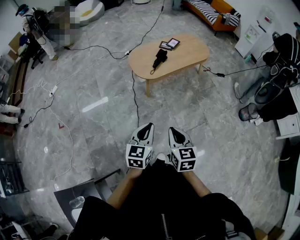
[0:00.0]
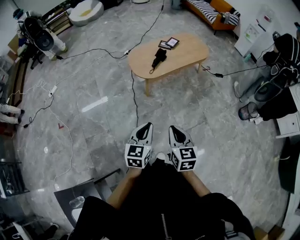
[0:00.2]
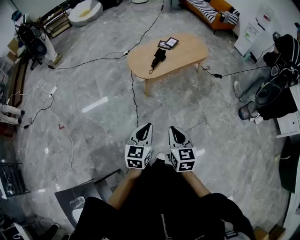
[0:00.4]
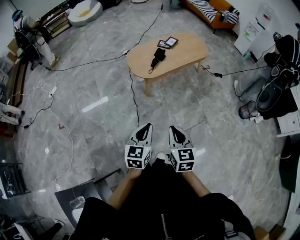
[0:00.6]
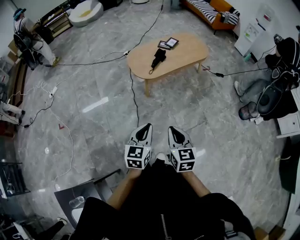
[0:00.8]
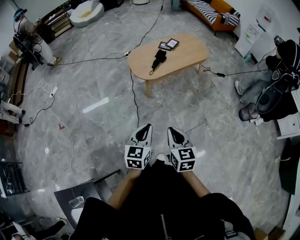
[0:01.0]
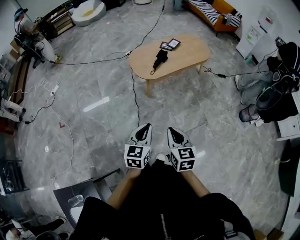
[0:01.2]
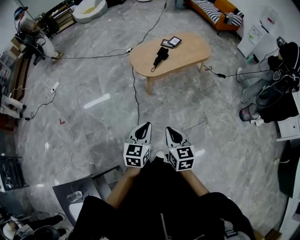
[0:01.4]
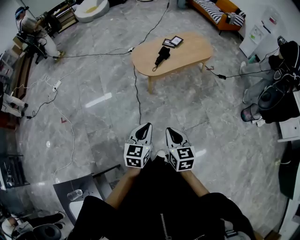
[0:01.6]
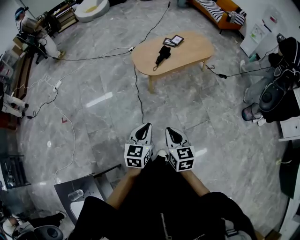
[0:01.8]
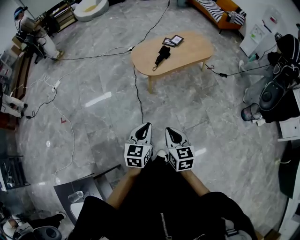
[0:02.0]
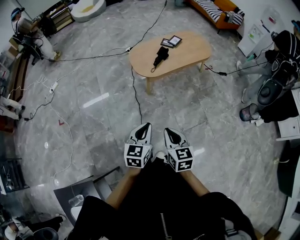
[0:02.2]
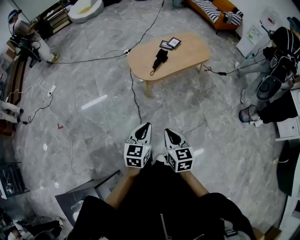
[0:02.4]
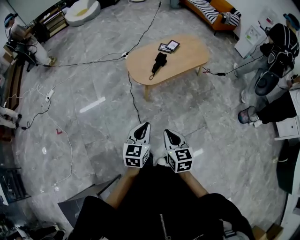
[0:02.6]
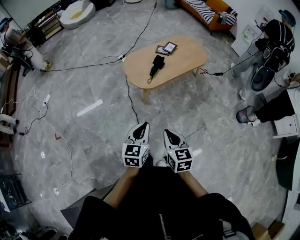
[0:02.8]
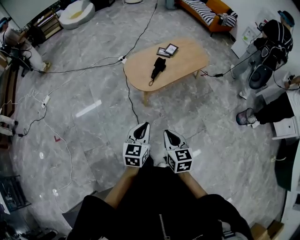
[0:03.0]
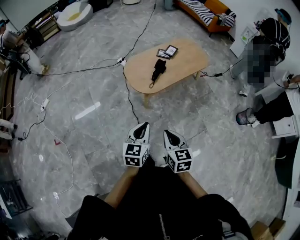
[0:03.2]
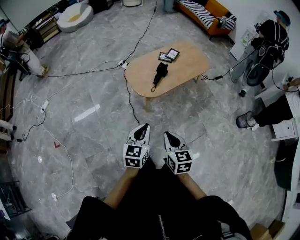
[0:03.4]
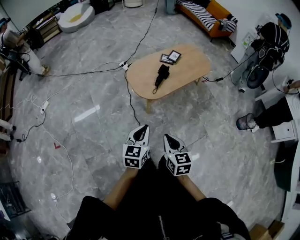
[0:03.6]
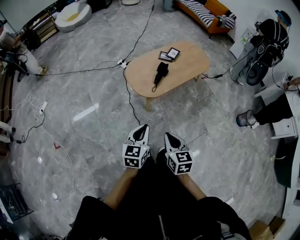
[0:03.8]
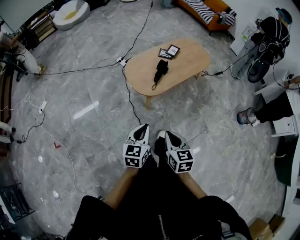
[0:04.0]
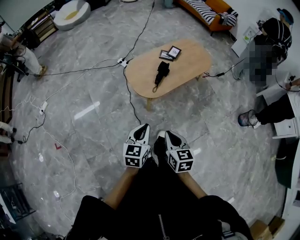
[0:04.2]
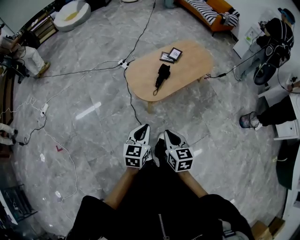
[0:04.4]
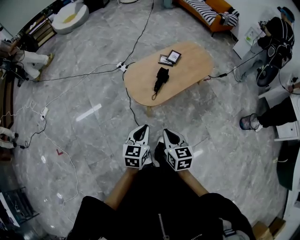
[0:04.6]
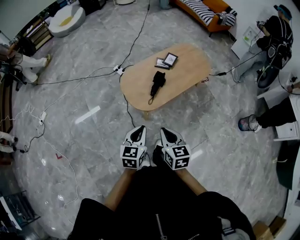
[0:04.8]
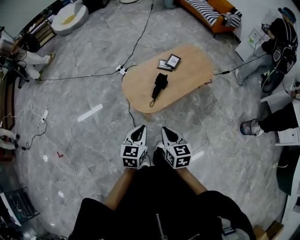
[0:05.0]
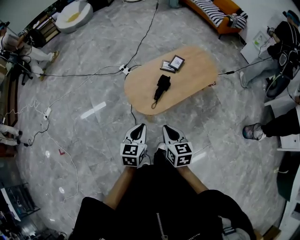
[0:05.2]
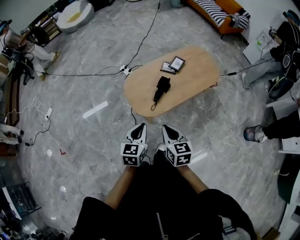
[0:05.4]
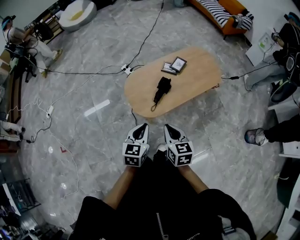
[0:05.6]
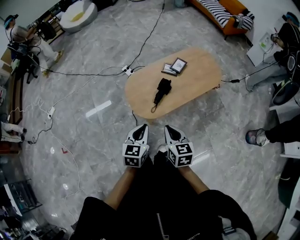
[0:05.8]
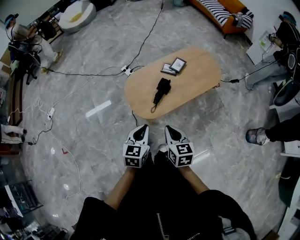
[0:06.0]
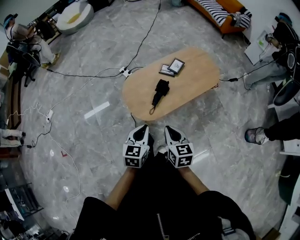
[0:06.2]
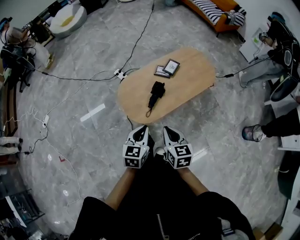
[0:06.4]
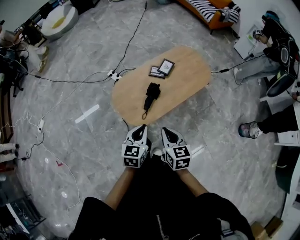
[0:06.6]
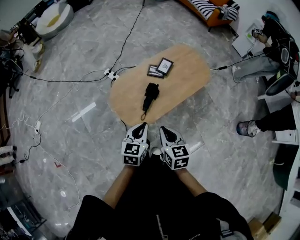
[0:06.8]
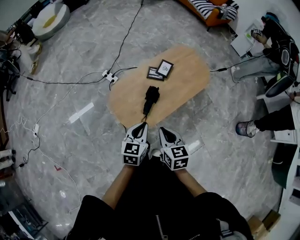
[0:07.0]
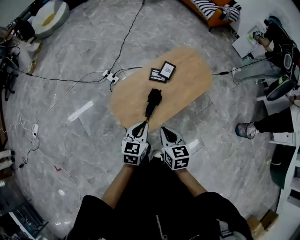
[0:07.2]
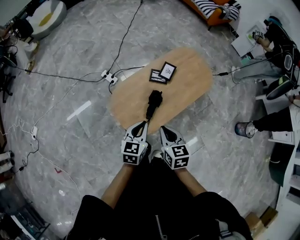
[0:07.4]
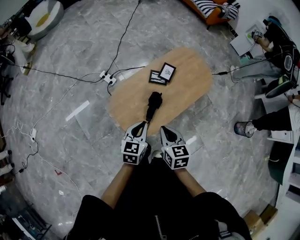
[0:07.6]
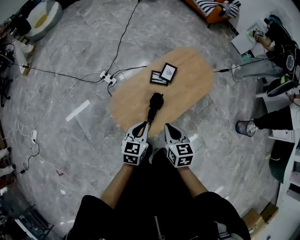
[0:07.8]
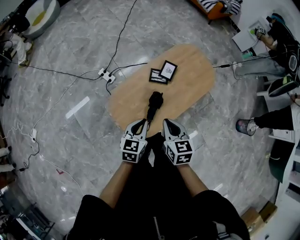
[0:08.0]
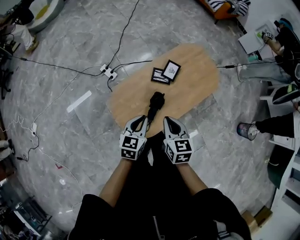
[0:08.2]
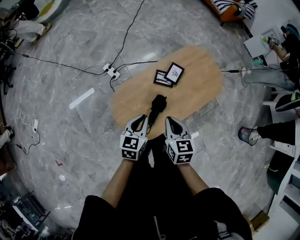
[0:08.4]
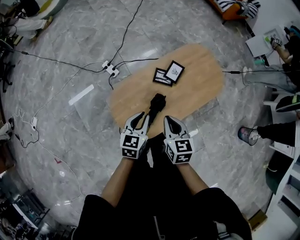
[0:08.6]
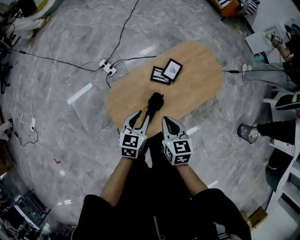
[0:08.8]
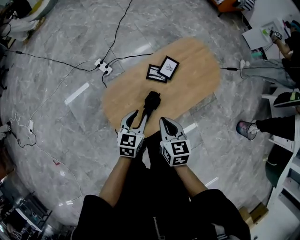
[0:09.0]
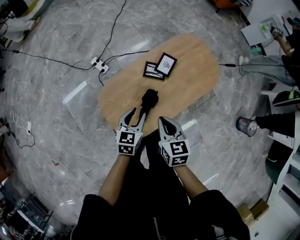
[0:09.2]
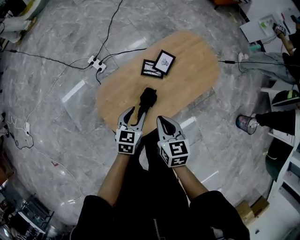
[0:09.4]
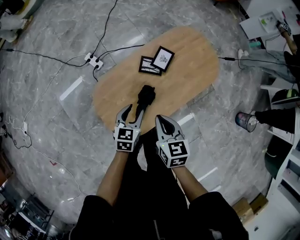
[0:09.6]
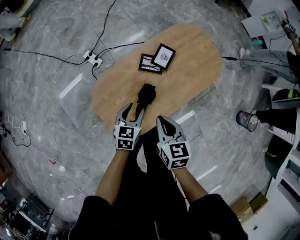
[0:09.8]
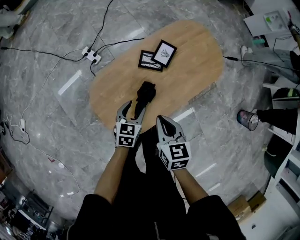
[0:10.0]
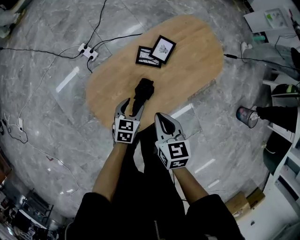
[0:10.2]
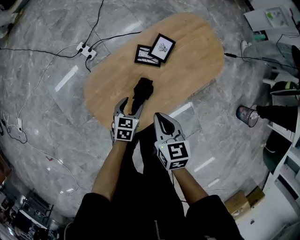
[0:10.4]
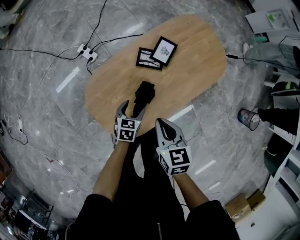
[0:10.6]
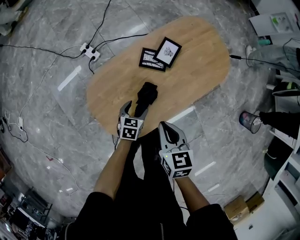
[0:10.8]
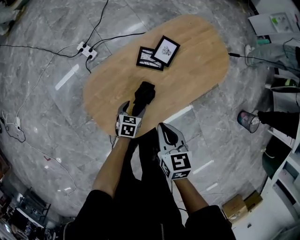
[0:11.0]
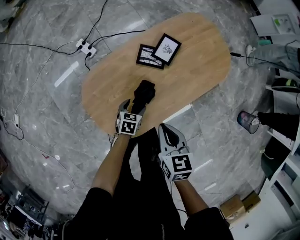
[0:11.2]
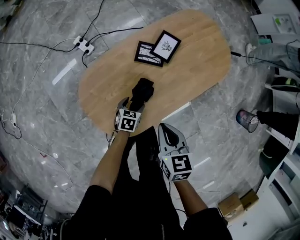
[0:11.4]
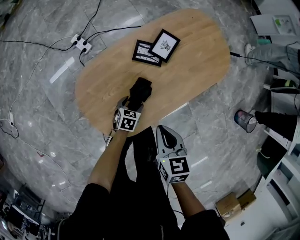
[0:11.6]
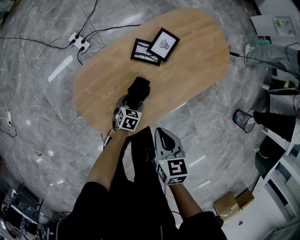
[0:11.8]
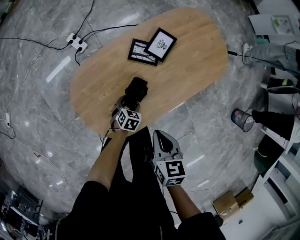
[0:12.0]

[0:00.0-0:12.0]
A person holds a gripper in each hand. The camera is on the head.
0.0 to 1.6 s: The grippers make only small movements.
1.6 to 3.0 s: The two grippers go about 15 cm forward.
3.0 to 4.4 s: The grippers both shift forward by roughly 10 cm.
4.4 to 6.0 s: Both grippers travel together forward and to the right, some 20 cm.
6.0 to 7.6 s: The two grippers go roughly 20 cm forward.
7.6 to 9.0 s: Both grippers move forward and downward, about 15 cm. The left gripper opens up.
9.0 to 10.4 s: The right gripper moves downward, roughly 10 cm. The left gripper travels downward by approximately 20 cm, and opens its fingers.
10.4 to 12.0 s: The right gripper travels downward by about 5 cm. Meanwhile the left gripper shifts roughly 15 cm downward.

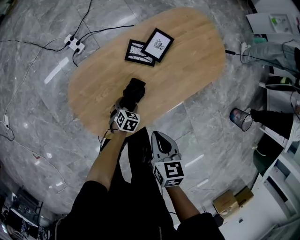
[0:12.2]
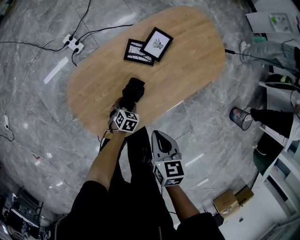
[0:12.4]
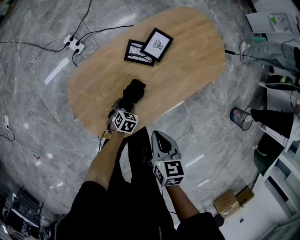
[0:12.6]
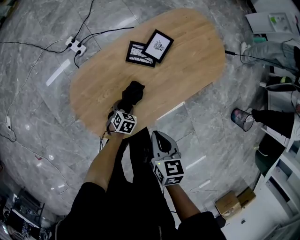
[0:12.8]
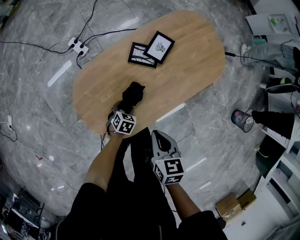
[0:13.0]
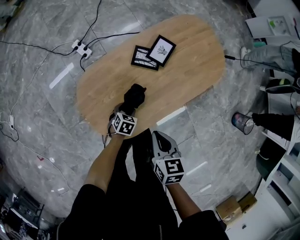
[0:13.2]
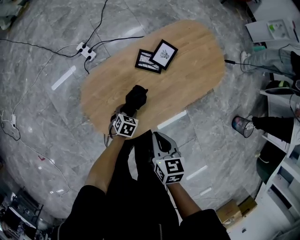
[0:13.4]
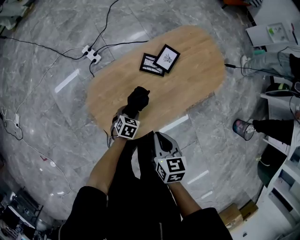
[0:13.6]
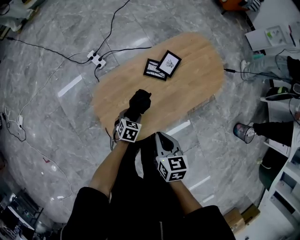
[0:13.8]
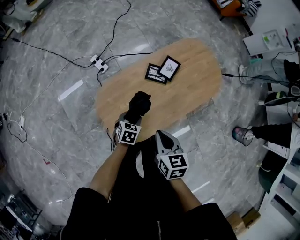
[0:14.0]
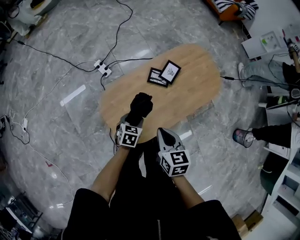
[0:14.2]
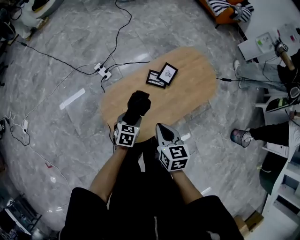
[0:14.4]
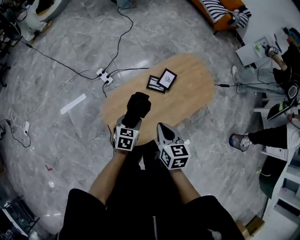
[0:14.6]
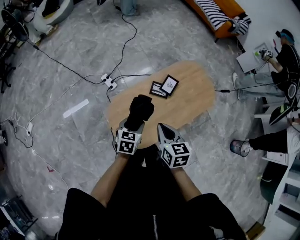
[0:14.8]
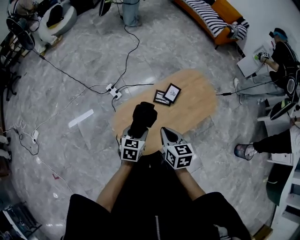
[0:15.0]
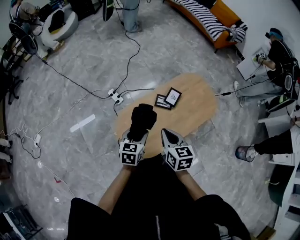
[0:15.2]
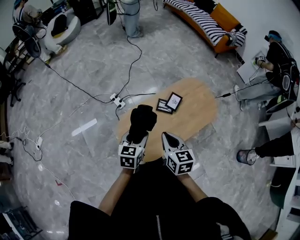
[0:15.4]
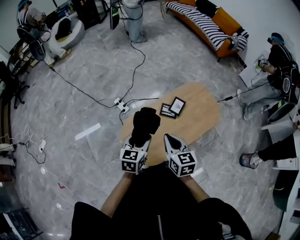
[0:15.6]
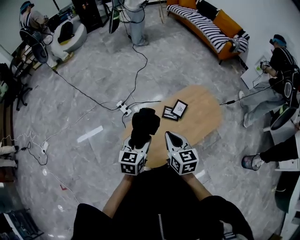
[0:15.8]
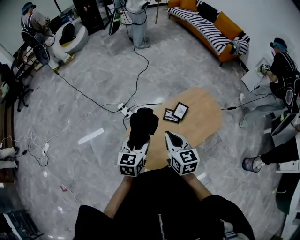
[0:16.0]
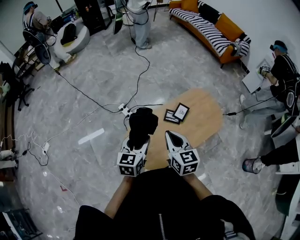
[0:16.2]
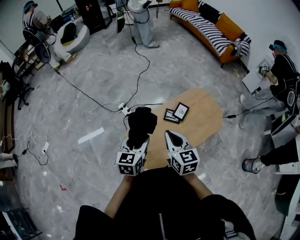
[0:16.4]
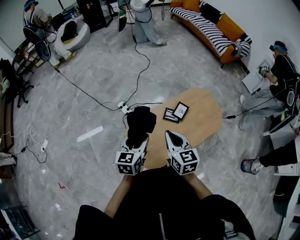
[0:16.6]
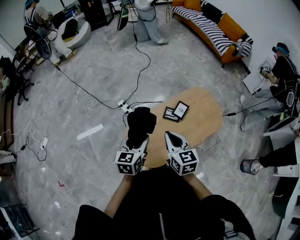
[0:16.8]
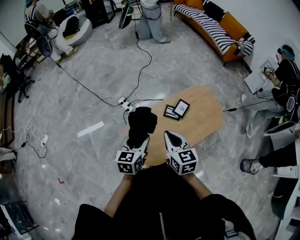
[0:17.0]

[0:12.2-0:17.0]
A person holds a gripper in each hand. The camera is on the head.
12.2 to 13.8 s: The left gripper goes some 15 cm upward and to the left. The right gripper goes approximately 10 cm upward and to the left.
13.8 to 15.4 s: The left gripper goes some 35 cm upward, and swivels roughly 30 degrees. Meanwhile the right gripper shifts about 20 cm upward.
15.4 to 17.0 s: The left gripper ends up approximately 5 cm from where it was.

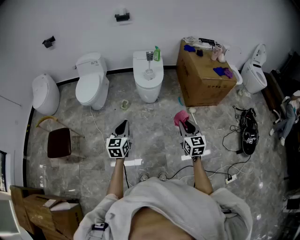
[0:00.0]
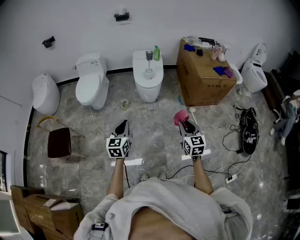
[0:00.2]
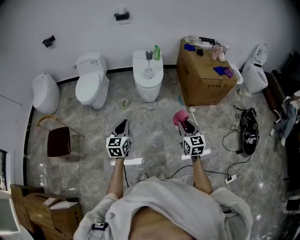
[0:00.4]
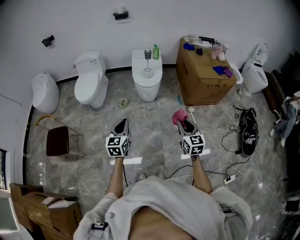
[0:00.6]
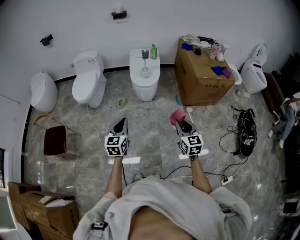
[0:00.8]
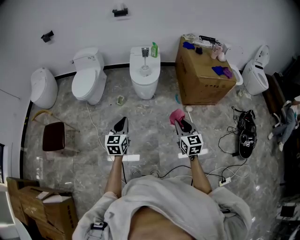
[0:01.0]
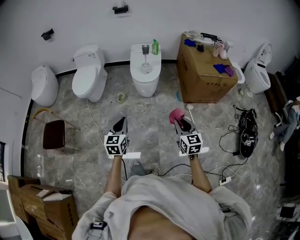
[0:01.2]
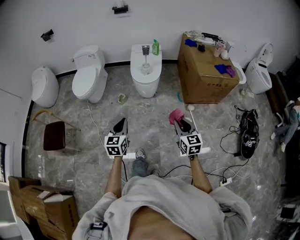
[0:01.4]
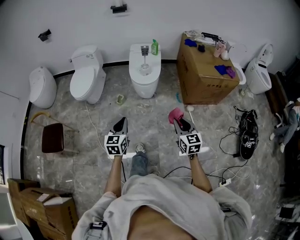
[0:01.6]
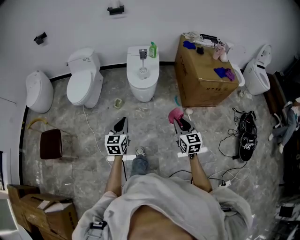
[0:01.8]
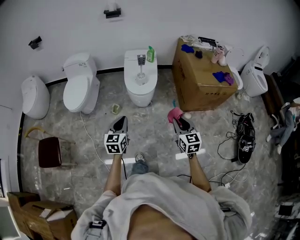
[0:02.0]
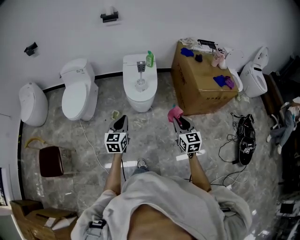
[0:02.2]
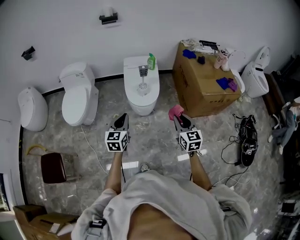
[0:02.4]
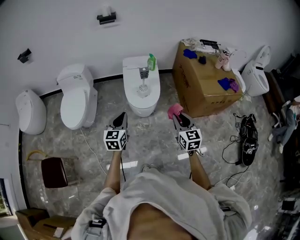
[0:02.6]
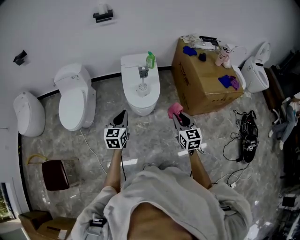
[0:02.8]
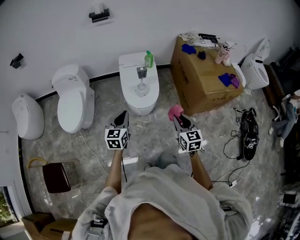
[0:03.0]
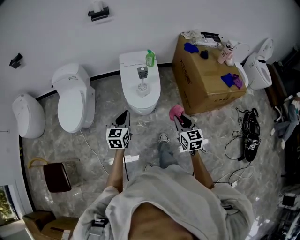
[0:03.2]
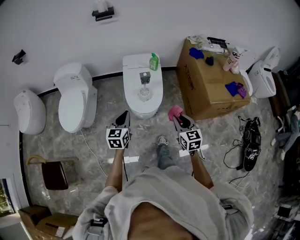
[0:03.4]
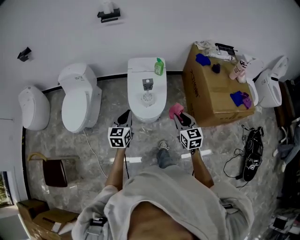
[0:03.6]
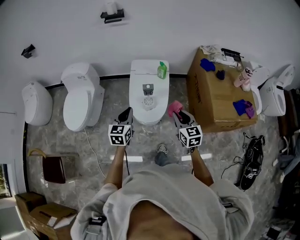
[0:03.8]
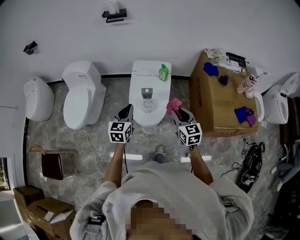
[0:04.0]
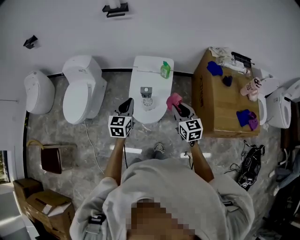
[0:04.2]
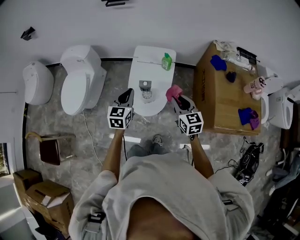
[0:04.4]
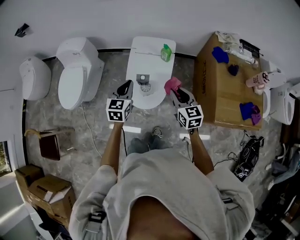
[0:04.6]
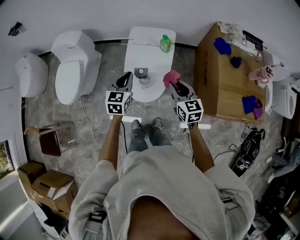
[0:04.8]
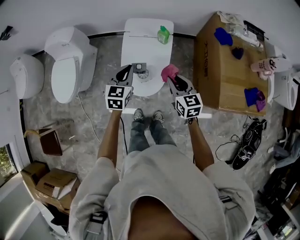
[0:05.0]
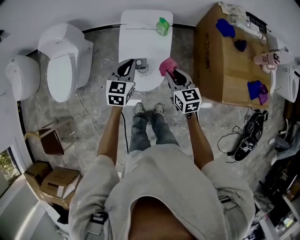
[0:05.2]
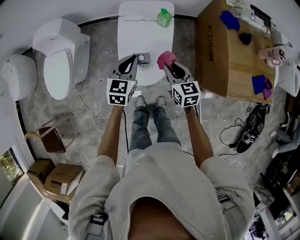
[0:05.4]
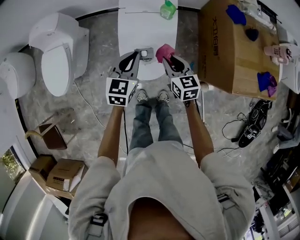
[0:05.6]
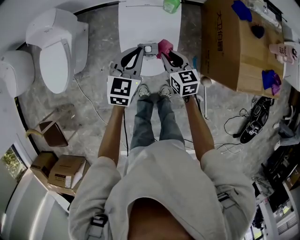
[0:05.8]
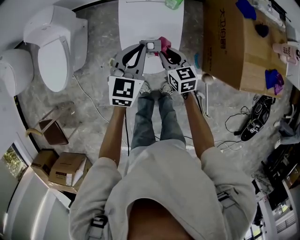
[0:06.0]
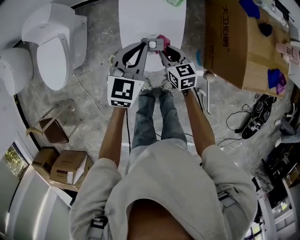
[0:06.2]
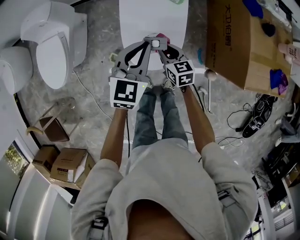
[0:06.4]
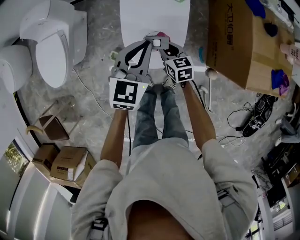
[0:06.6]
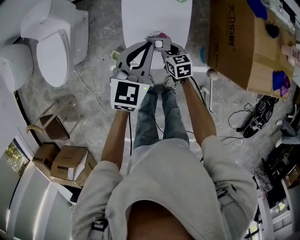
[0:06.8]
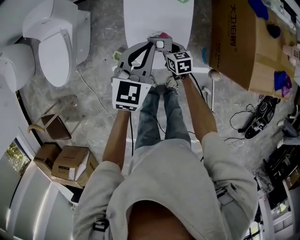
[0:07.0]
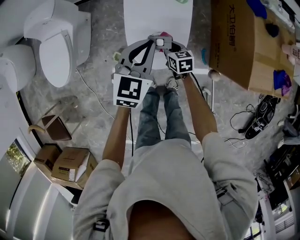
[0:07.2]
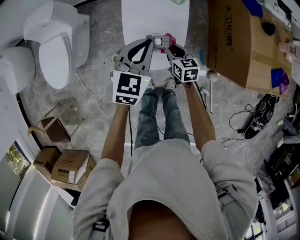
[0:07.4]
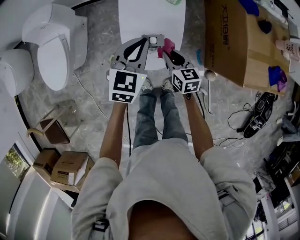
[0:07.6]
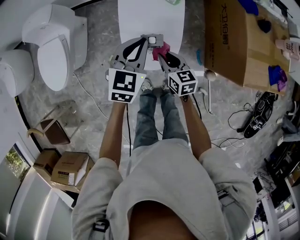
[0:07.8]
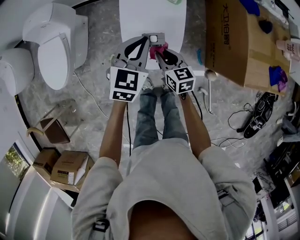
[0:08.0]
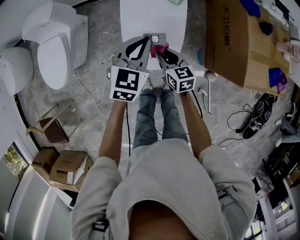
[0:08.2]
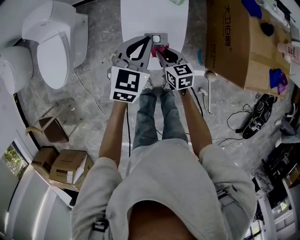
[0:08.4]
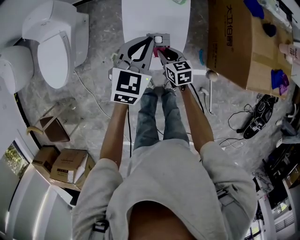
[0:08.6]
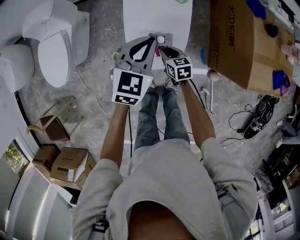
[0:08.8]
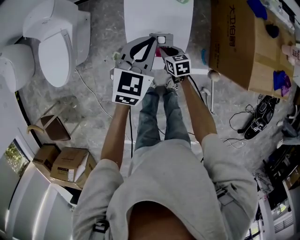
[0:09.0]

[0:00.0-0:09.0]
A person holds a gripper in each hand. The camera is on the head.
0.0 to 1.6 s: The left gripper moves to the right, roughly 5 cm. The right gripper is displaced forward by approximately 5 cm.
1.6 to 3.0 s: Both grippers travel together forward, roughly 30 cm.
3.0 to 4.4 s: Both grippers move forward, some 25 cm. The right gripper swivels approximately 20 degrees.
4.4 to 6.0 s: The right gripper is displaced downward and to the left by roughly 20 cm. The left gripper shifts roughly 10 cm downward and forward.
6.0 to 7.6 s: The right gripper travels downward and back again, roughly 15 cm each way.
7.6 to 9.0 s: The right gripper goes some 10 cm downward.
